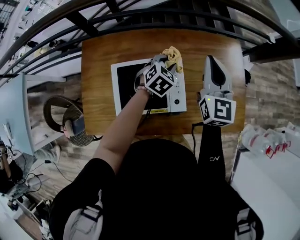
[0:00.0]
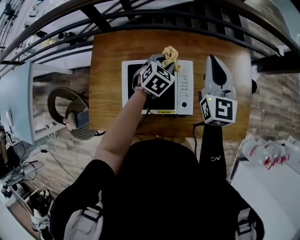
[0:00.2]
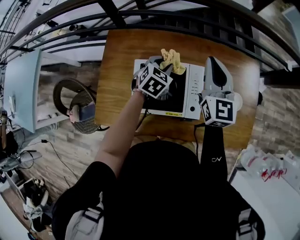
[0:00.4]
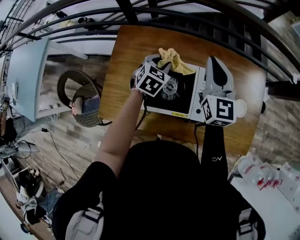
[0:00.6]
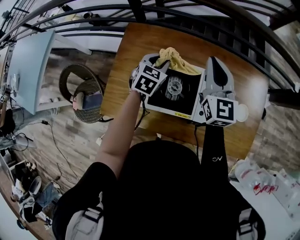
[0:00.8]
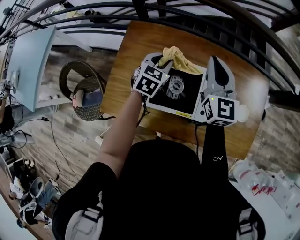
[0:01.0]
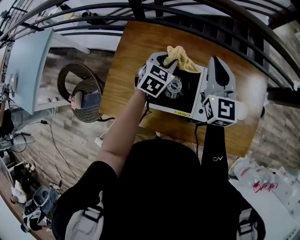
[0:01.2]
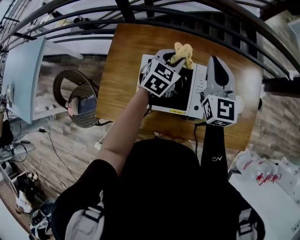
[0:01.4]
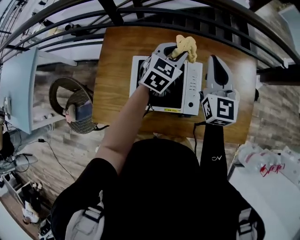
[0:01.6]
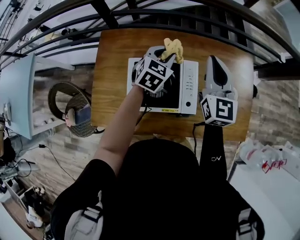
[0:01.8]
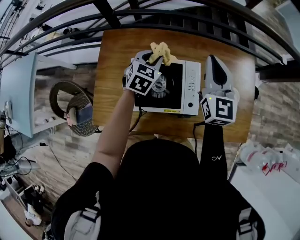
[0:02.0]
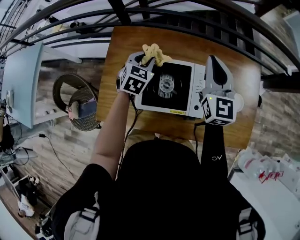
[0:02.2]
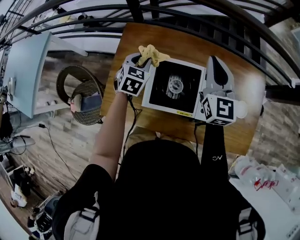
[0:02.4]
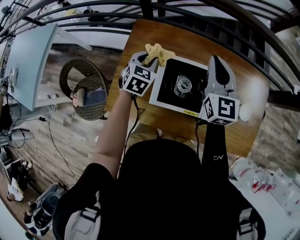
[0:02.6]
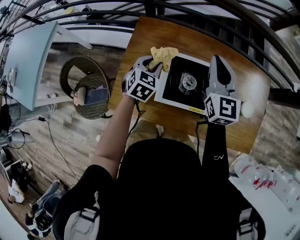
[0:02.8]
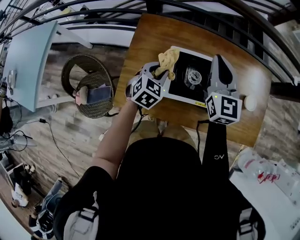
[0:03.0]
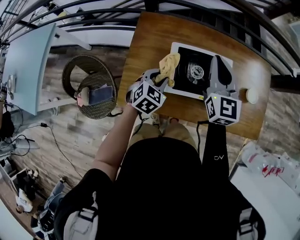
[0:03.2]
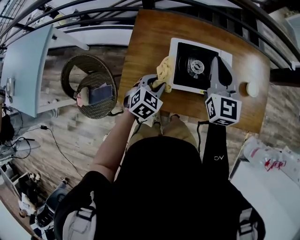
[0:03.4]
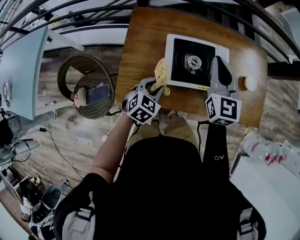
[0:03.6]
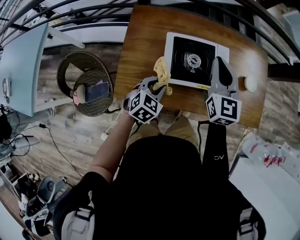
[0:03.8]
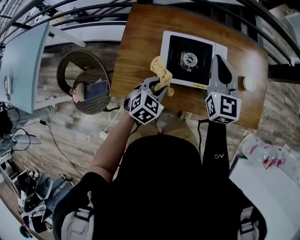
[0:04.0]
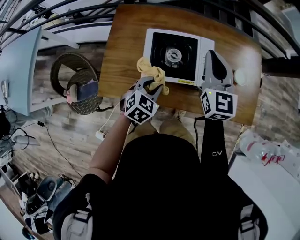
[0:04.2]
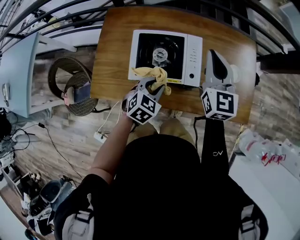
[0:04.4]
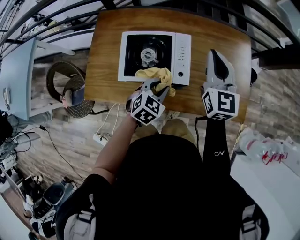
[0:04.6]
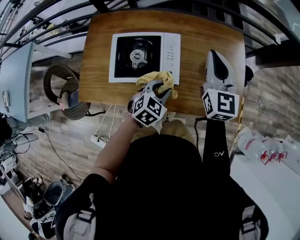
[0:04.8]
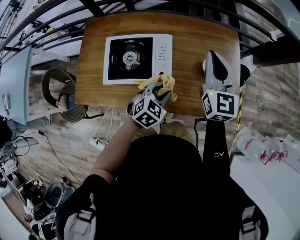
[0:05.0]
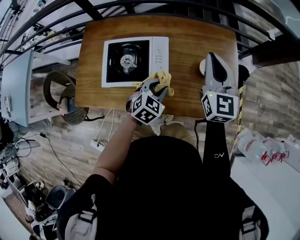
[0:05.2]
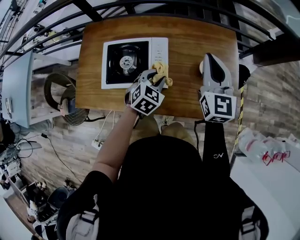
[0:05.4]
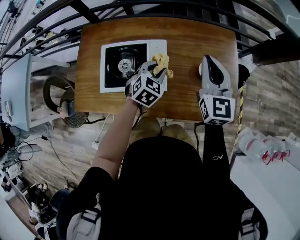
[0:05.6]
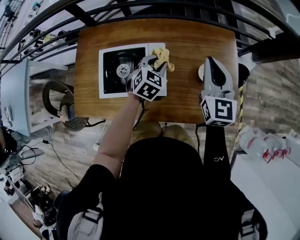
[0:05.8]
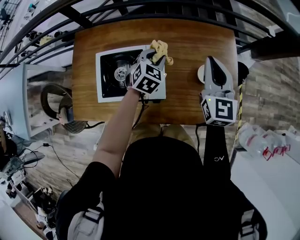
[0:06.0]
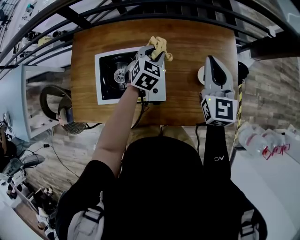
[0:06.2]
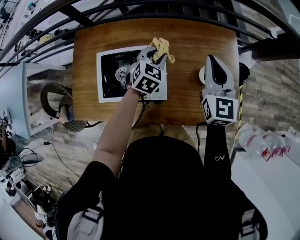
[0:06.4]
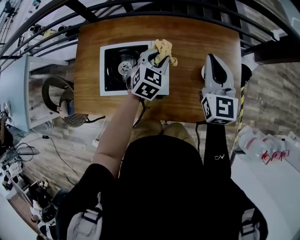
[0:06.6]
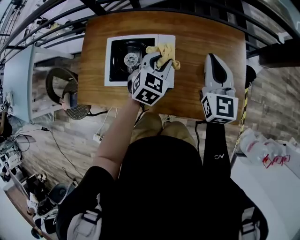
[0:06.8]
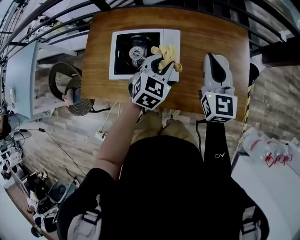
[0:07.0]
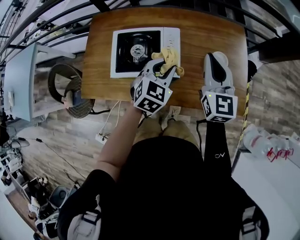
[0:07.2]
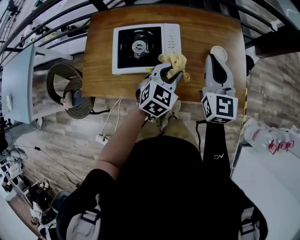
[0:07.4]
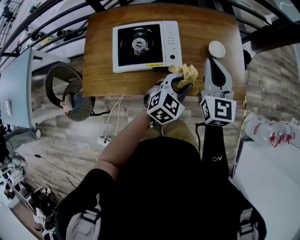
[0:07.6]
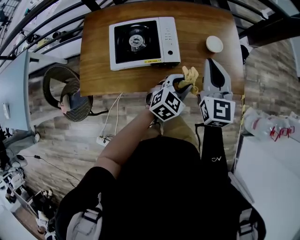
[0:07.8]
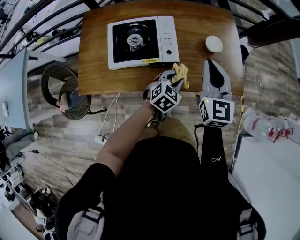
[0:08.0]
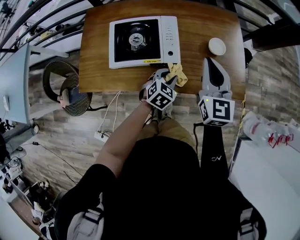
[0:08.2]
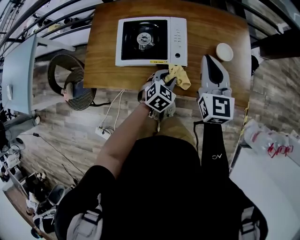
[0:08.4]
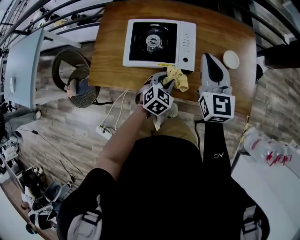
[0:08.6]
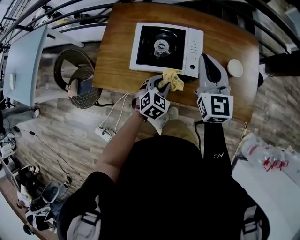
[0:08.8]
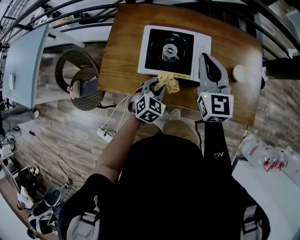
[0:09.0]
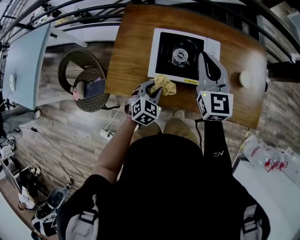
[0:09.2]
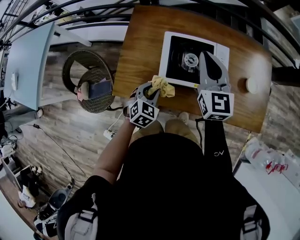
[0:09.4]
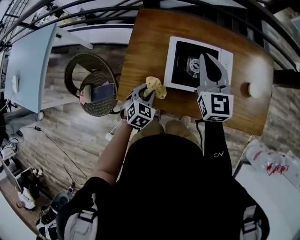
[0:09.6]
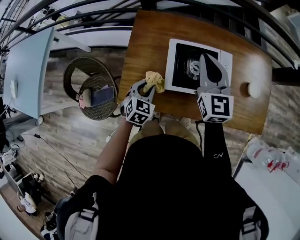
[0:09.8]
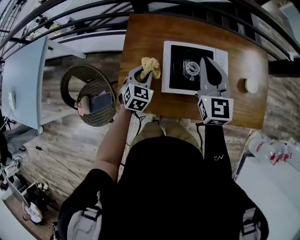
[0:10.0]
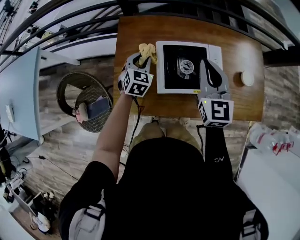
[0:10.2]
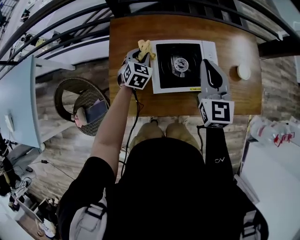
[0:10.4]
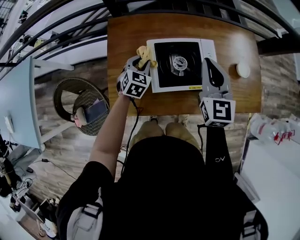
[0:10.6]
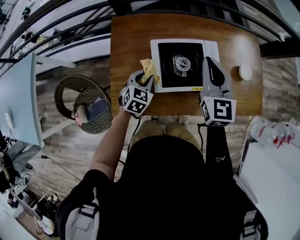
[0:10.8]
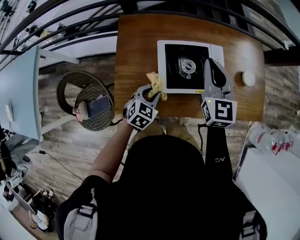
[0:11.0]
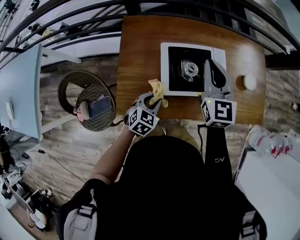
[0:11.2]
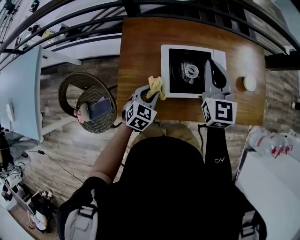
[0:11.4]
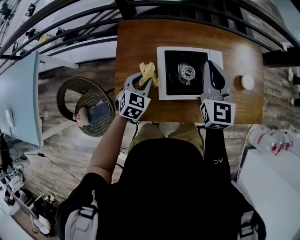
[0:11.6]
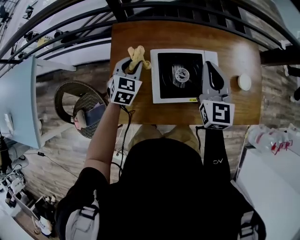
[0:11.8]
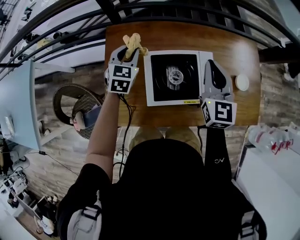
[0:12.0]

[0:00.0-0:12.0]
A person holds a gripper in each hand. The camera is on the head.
0:00.0 to 0:01.6: The left gripper moves upward and to the left, roughly 15 cm, and turns by approximately 20 degrees. The right gripper travels to the left by approximately 10 cm.
0:01.6 to 0:03.0: The left gripper shifts roughly 25 cm to the left, backward and downward; the right gripper heads to the left, covering roughly 15 cm.
0:03.0 to 0:04.4: The left gripper is displaced to the right and backward by roughly 20 cm. The right gripper is displaced to the right by some 15 cm.
0:04.4 to 0:06.0: The right gripper is displaced to the right and forward by some 15 cm. The left gripper heads forward and to the right, covering roughly 25 cm.
0:06.0 to 0:07.6: The right gripper travels backward by about 15 cm. Meanwhile the left gripper is displaced backward by some 25 cm, and turns by roughly 20 degrees.
0:07.6 to 0:09.0: The right gripper changes place by about 15 cm, while the left gripper shifts by approximately 25 cm, and turns by some 30 degrees.
0:09.0 to 0:10.4: The right gripper heads to the left, covering some 5 cm. Meanwhile the left gripper heads forward and to the left, covering roughly 25 cm.
0:10.4 to 0:12.0: The right gripper heads forward, covering approximately 5 cm, while the left gripper shifts about 10 cm upward, and moves approximately 20 cm backward and comes back.

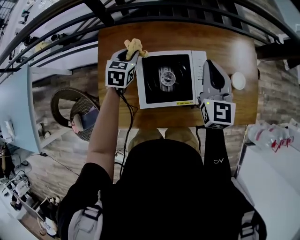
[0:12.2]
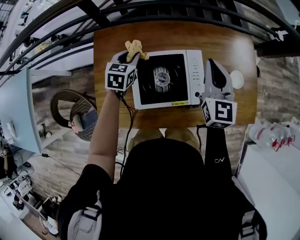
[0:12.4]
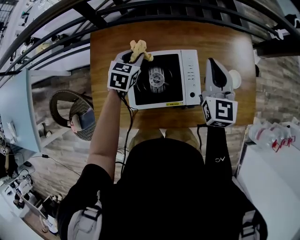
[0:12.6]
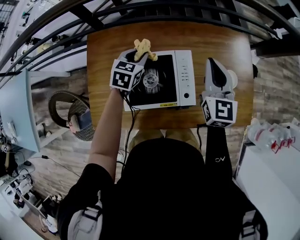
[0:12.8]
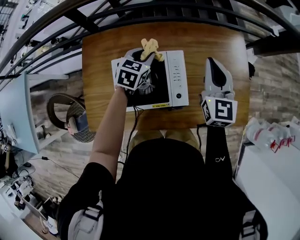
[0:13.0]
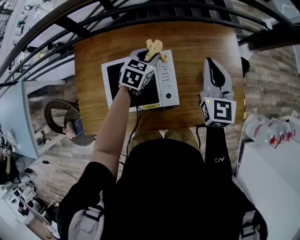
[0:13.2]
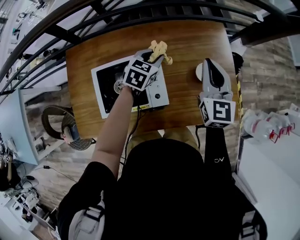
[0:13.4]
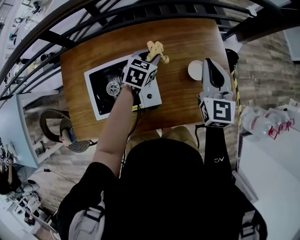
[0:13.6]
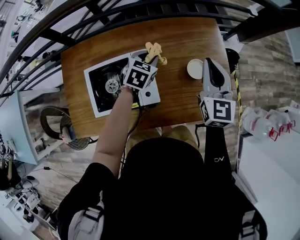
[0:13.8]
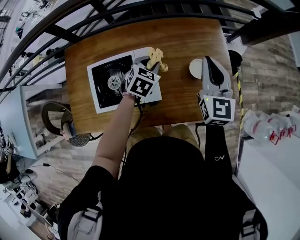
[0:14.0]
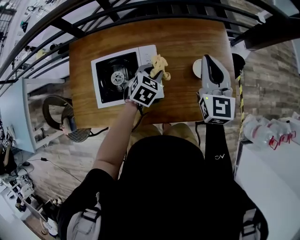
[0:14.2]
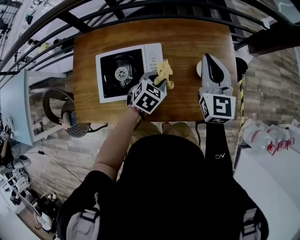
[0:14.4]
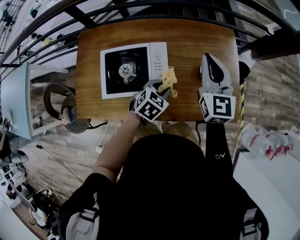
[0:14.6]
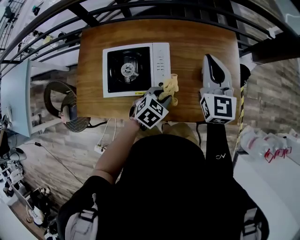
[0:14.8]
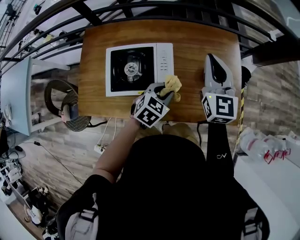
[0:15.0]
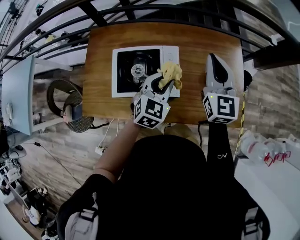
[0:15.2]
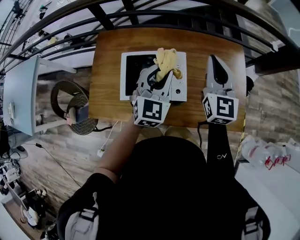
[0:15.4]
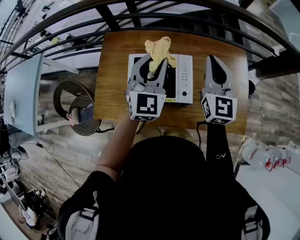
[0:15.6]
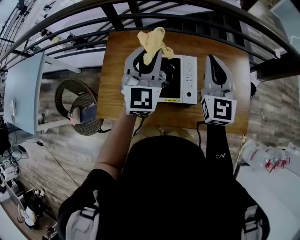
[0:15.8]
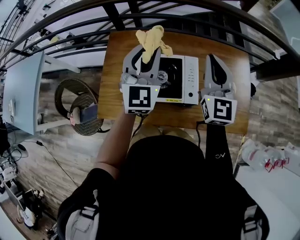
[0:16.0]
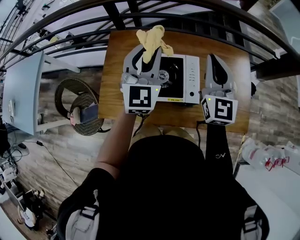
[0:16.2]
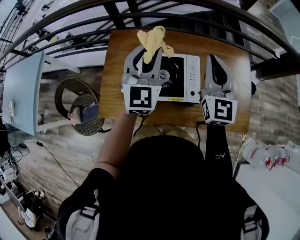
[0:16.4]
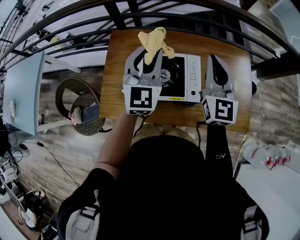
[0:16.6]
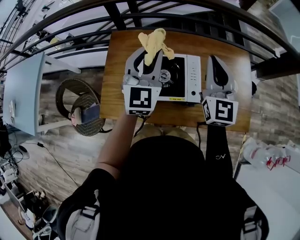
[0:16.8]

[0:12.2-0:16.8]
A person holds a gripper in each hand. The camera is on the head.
0:12.2 to 0:13.8: The grippers both shift to the right by some 30 cm.
0:13.8 to 0:15.2: The right gripper shifts some 10 cm to the left; the left gripper shifts approximately 15 cm backward and upward.
0:15.2 to 0:16.8: The left gripper heads to the left and upward, covering some 25 cm, and changes its angle by about 30 degrees. The right gripper travels to the left and upward by about 15 cm.

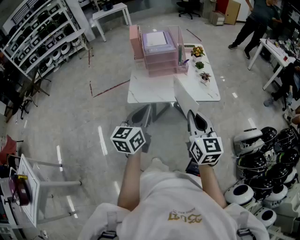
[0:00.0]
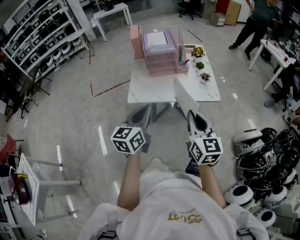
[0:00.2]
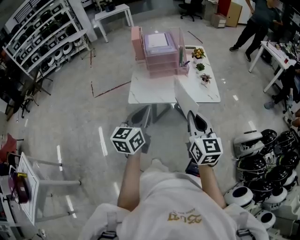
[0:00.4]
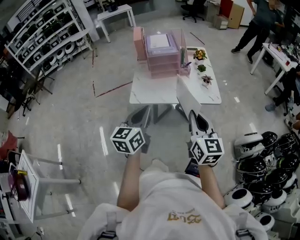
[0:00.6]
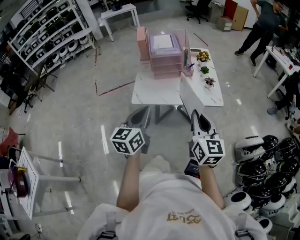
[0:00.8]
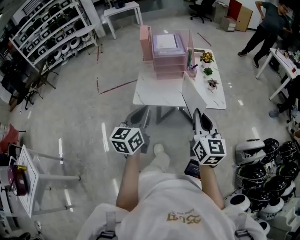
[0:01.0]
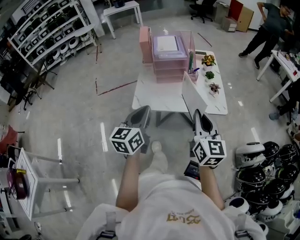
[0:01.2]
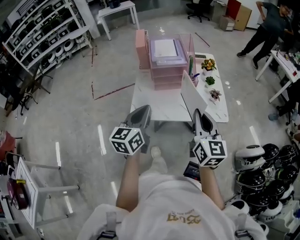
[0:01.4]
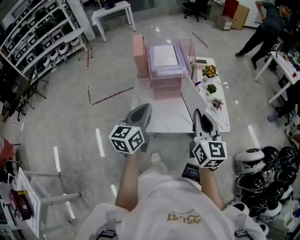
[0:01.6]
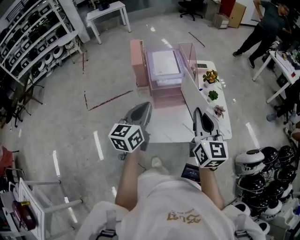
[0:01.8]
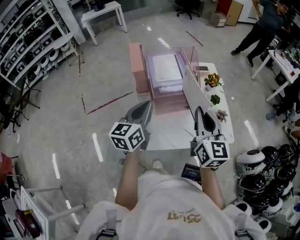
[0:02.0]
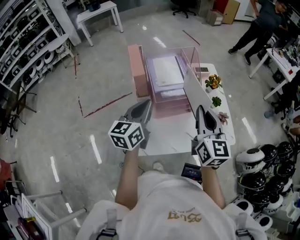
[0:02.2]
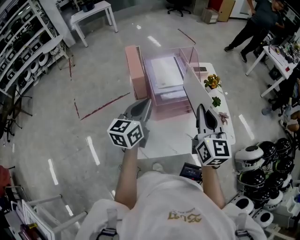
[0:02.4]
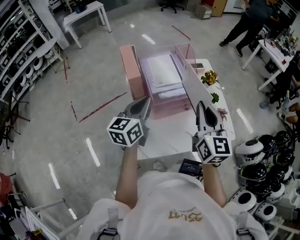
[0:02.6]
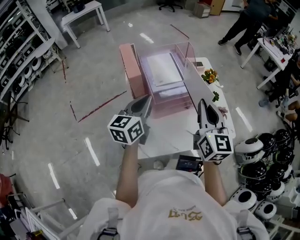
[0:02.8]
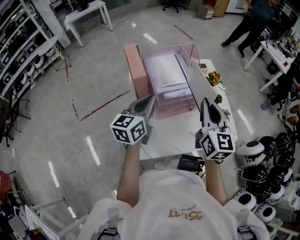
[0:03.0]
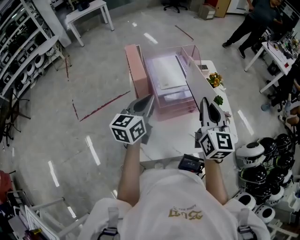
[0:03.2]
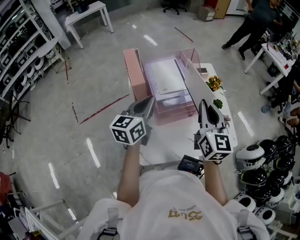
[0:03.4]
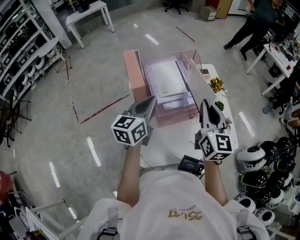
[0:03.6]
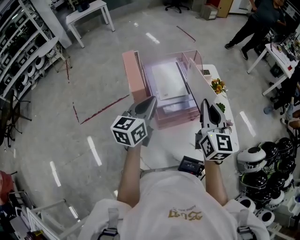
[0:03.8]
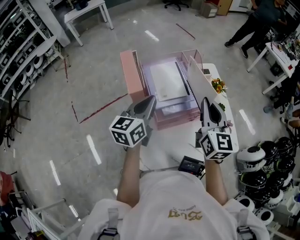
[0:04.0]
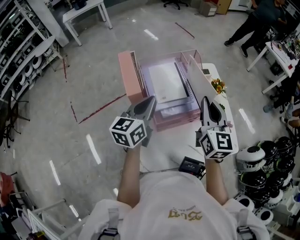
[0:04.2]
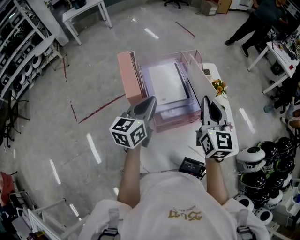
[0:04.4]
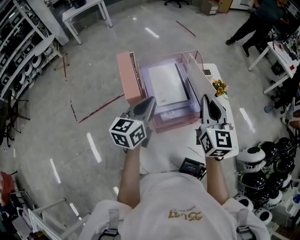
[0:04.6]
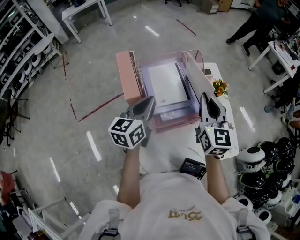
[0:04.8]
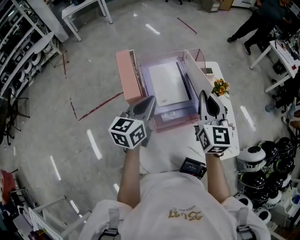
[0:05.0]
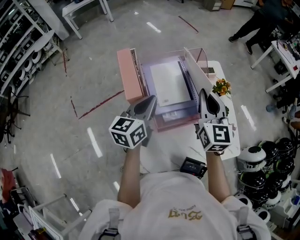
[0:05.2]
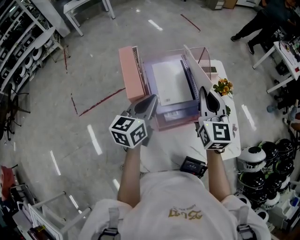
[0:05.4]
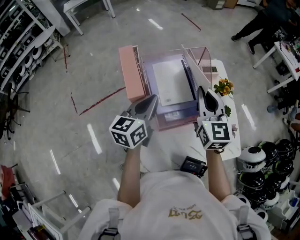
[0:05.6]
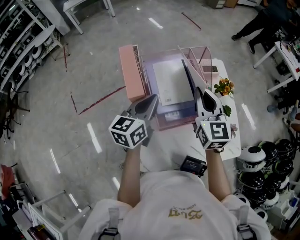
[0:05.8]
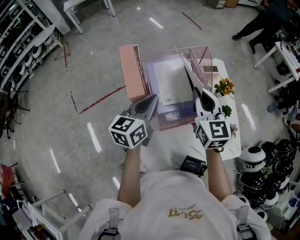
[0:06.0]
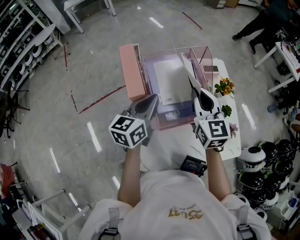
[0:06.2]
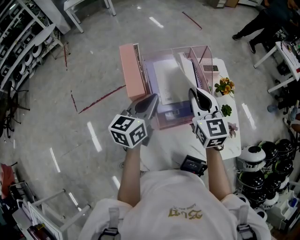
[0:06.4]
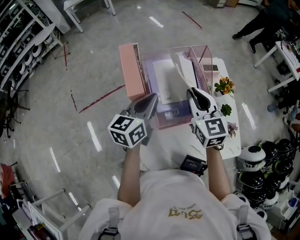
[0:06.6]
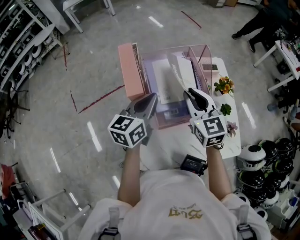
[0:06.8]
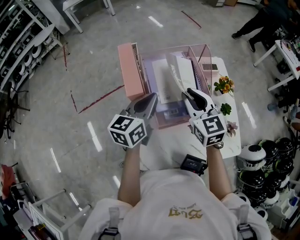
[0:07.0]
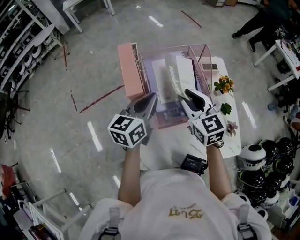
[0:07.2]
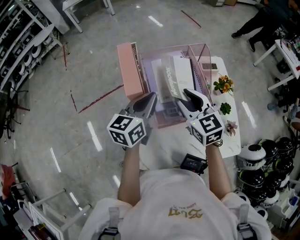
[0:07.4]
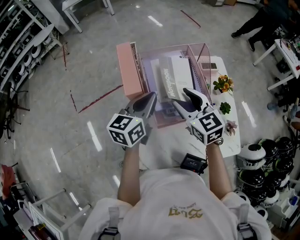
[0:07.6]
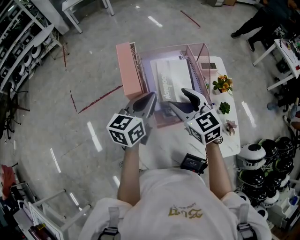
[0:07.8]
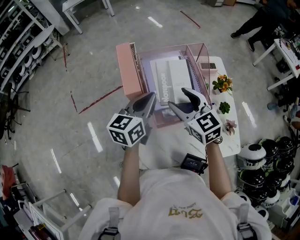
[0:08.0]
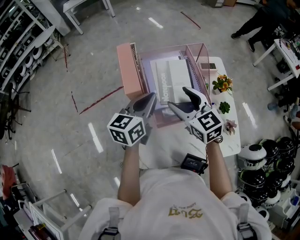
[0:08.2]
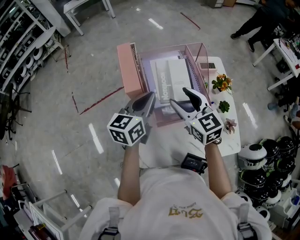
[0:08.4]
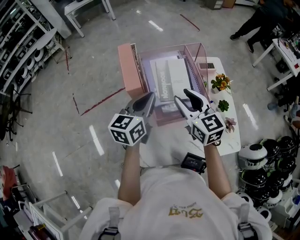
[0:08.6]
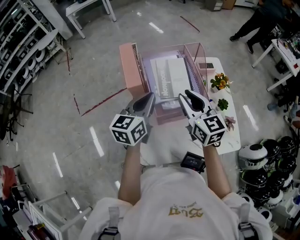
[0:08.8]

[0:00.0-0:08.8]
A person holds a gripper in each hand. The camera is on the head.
0:00.0 to 0:01.4: The grippers both shift forward by about 15 cm.
0:01.4 to 0:03.0: The right gripper is displaced forward and to the left by about 25 cm, while the left gripper shifts some 30 cm forward.
0:03.0 to 0:04.4: Both grippers move forward, some 10 cm.
0:04.4 to 0:05.8: The right gripper goes approximately 5 cm to the left.
0:05.8 to 0:07.4: The right gripper heads to the left, covering roughly 5 cm, changes its angle by some 20 degrees, and opens its fingers.
0:07.4 to 0:08.8: The right gripper shifts by about 5 cm, and opens and closes again.
